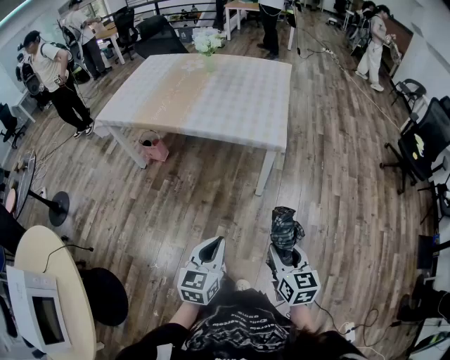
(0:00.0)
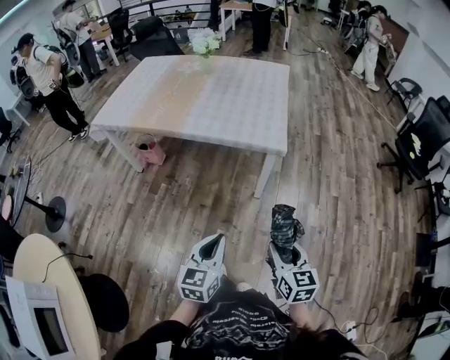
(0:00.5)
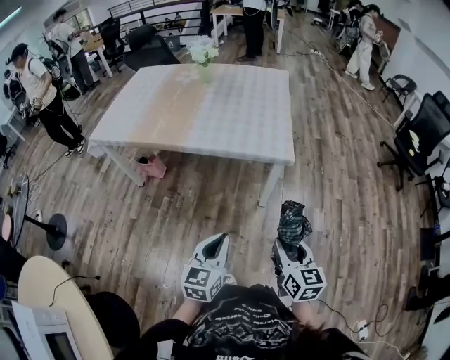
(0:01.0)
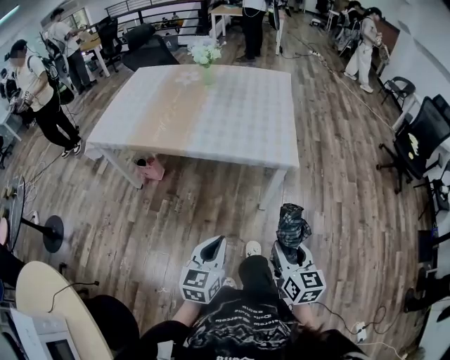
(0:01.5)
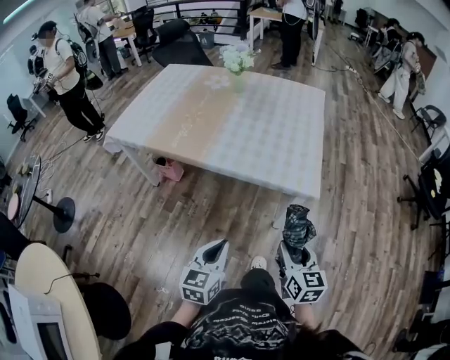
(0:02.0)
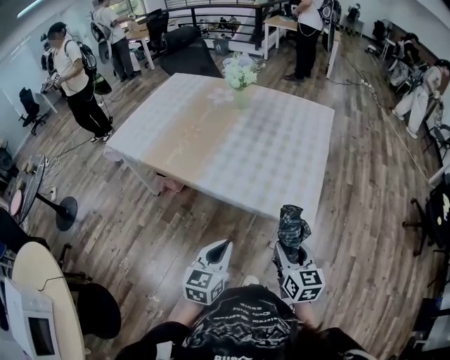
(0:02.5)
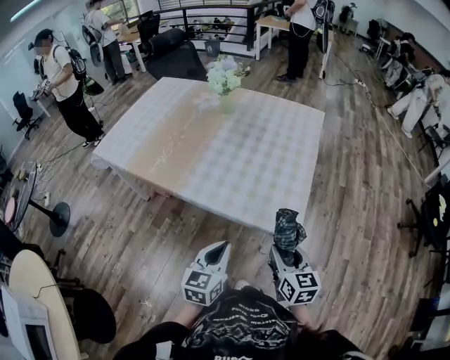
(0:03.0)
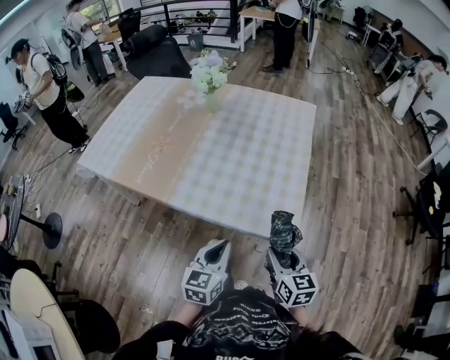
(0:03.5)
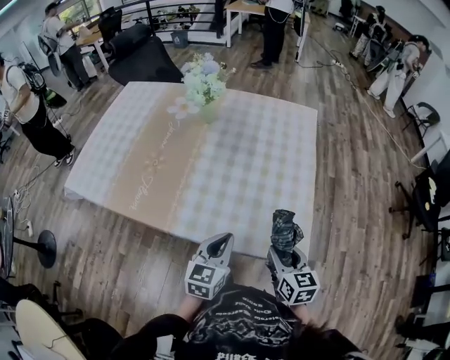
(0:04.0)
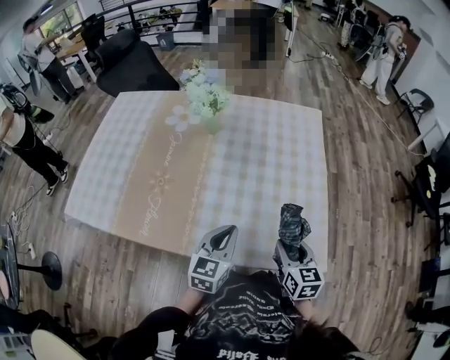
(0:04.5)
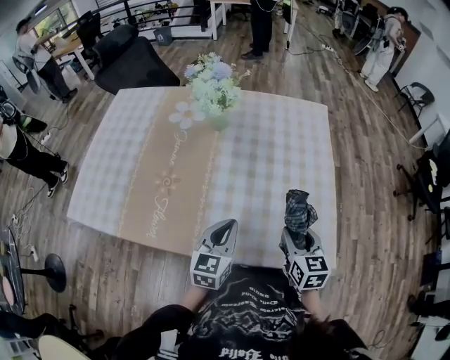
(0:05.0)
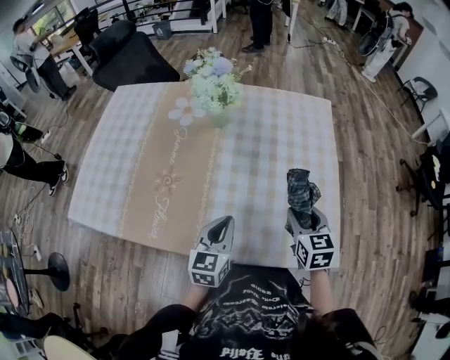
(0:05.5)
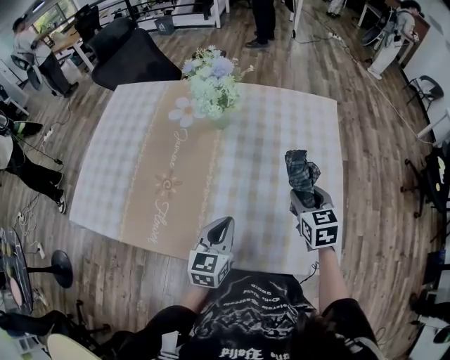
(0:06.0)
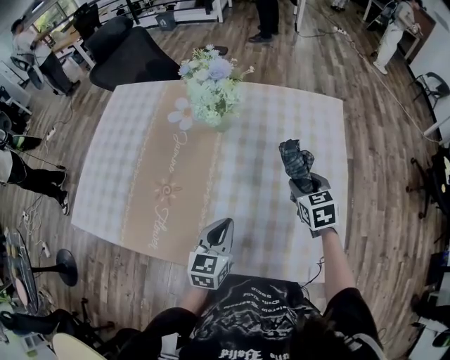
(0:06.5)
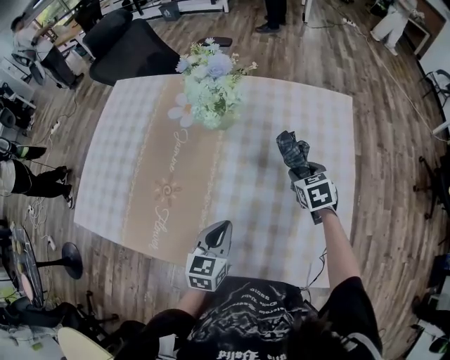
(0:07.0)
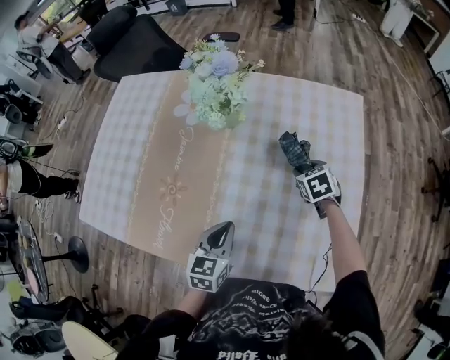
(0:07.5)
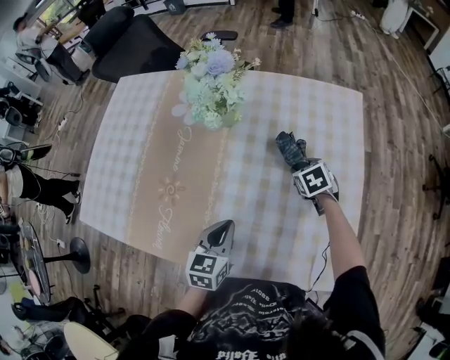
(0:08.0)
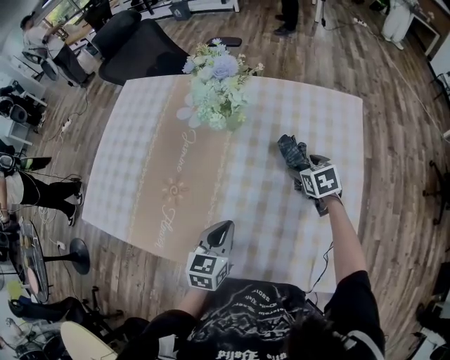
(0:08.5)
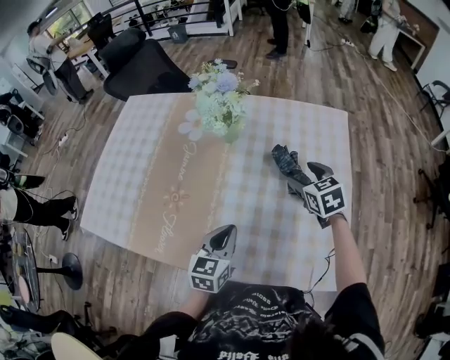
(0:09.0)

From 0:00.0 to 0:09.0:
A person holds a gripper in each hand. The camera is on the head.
From 0:00.0 to 0:02.0: Both grippers move forward and to the left, approximately 25 cm.
From 0:02.0 to 0:04.5: Both grippers are carried forward, some 50 cm.
From 0:04.5 to 0:07.0: The left gripper goes approximately 15 cm forward, to the left and downward. Meanwhile the right gripper moves forward, about 35 cm, and turns by about 30 degrees.
From 0:07.0 to 0:09.0: The right gripper shifts about 10 cm upward, and opens up.

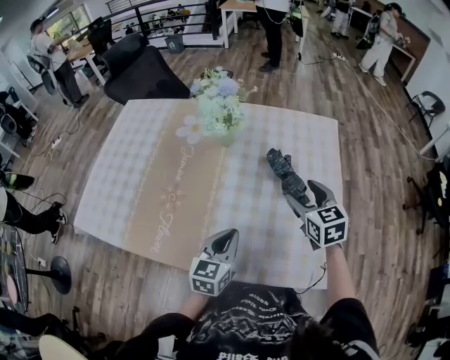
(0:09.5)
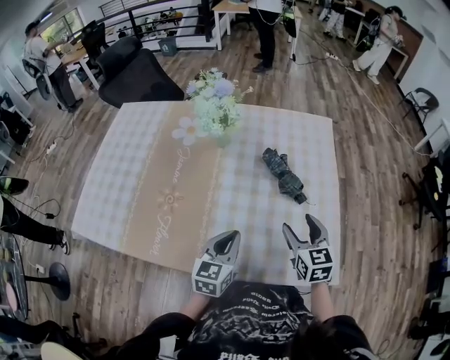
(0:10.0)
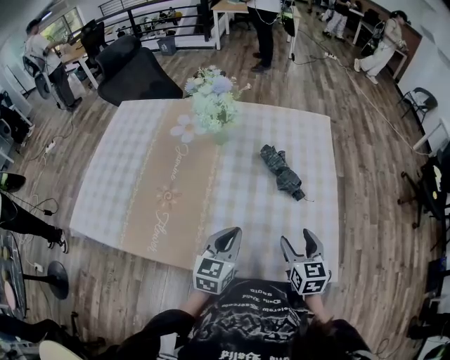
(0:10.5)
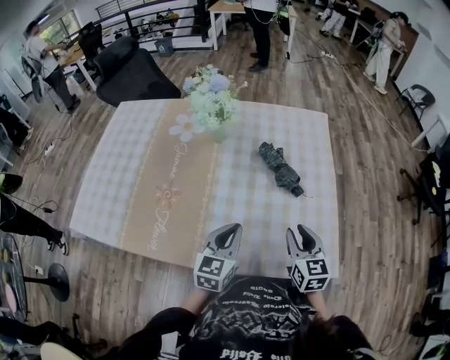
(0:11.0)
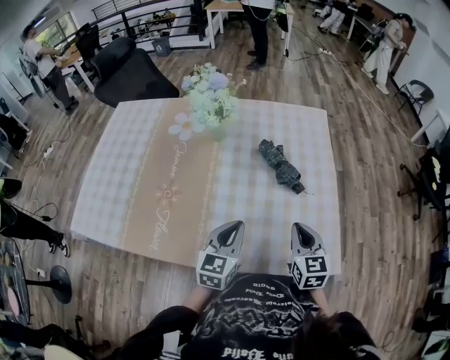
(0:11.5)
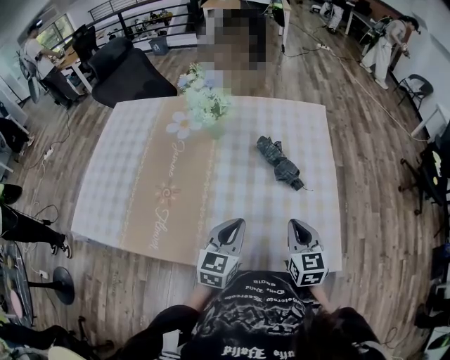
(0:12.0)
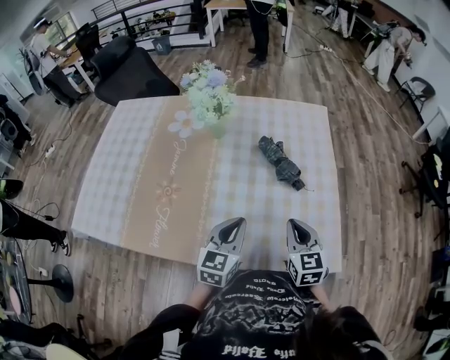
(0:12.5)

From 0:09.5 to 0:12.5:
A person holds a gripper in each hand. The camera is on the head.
From 0:09.5 to 0:11.0: The right gripper heads backward, covering about 15 cm, and closes its fingers.
From 0:11.0 to 0:12.5: The right gripper closes.

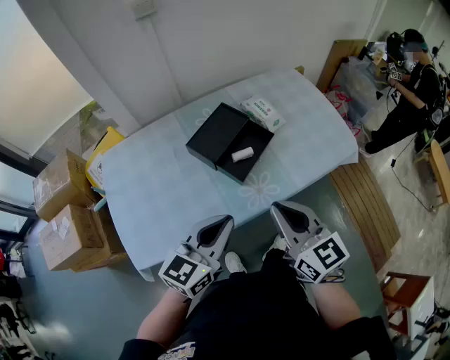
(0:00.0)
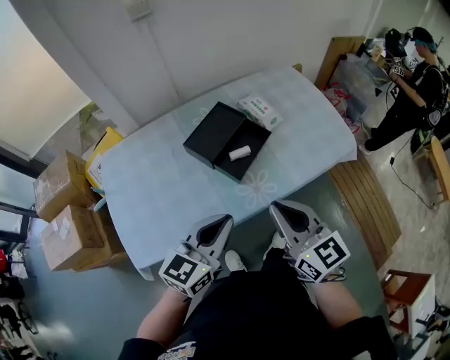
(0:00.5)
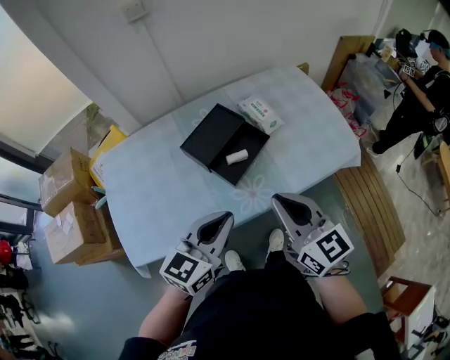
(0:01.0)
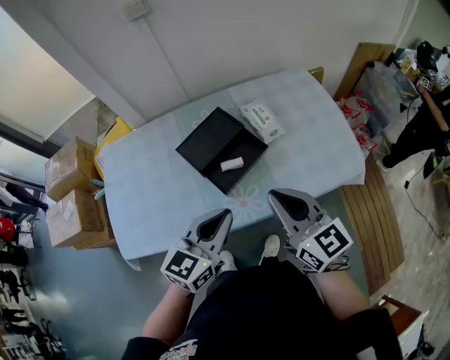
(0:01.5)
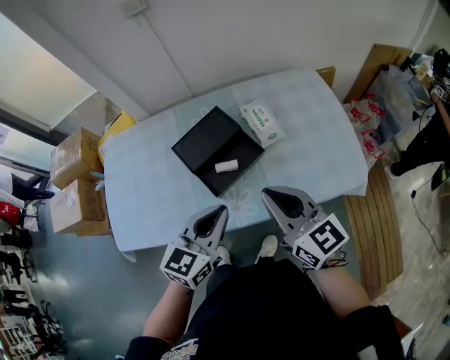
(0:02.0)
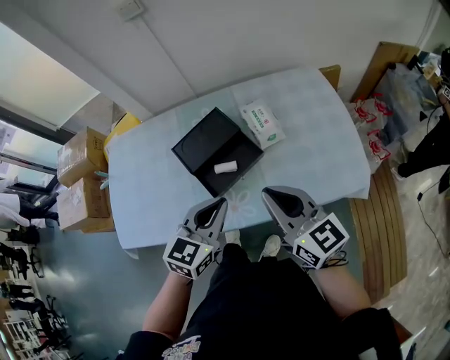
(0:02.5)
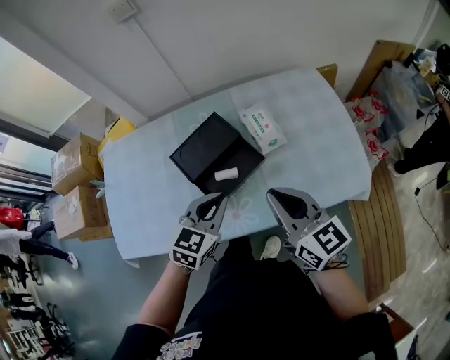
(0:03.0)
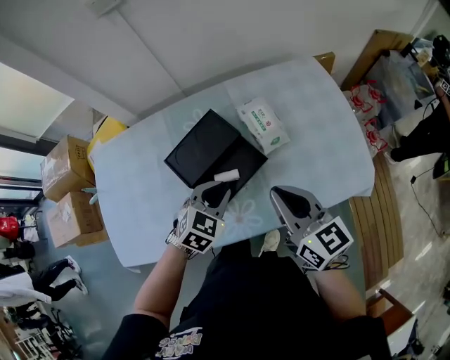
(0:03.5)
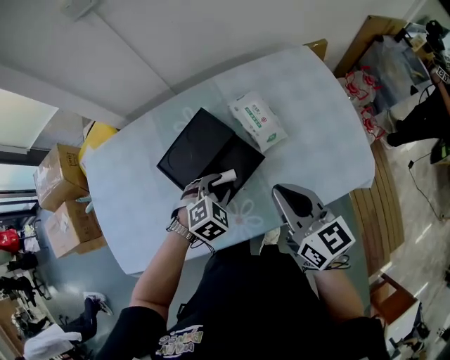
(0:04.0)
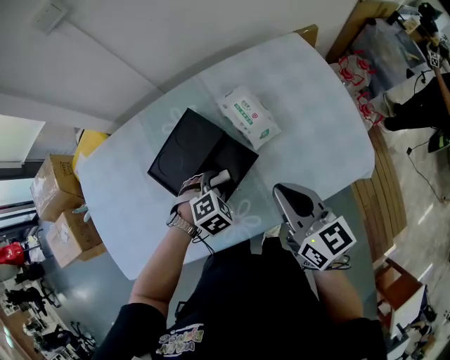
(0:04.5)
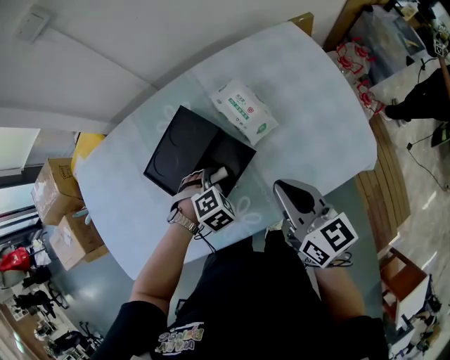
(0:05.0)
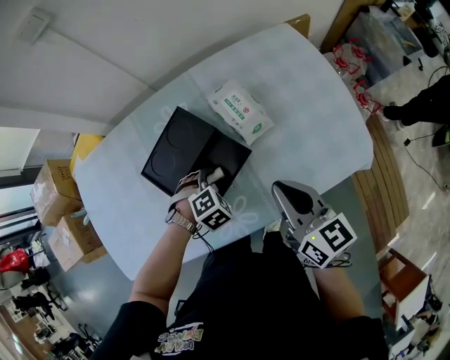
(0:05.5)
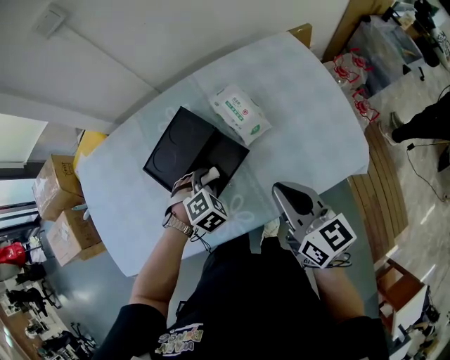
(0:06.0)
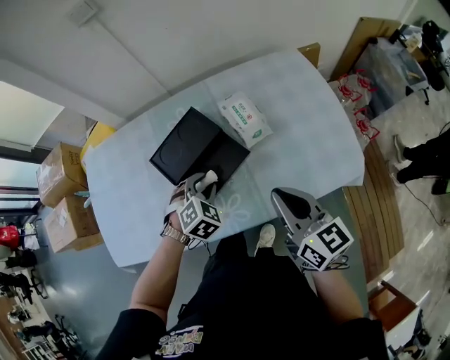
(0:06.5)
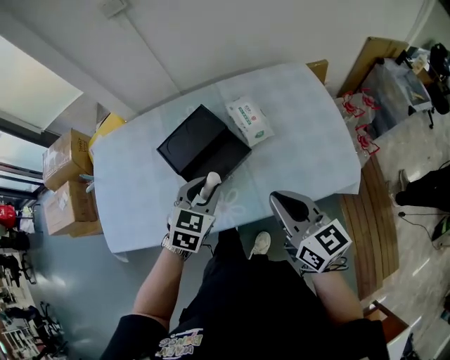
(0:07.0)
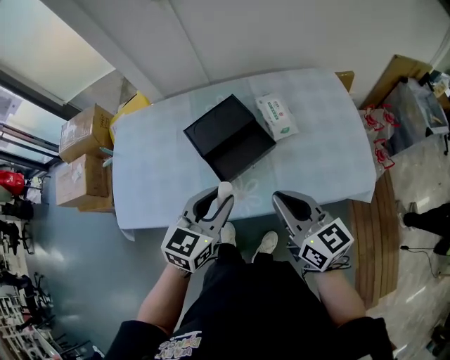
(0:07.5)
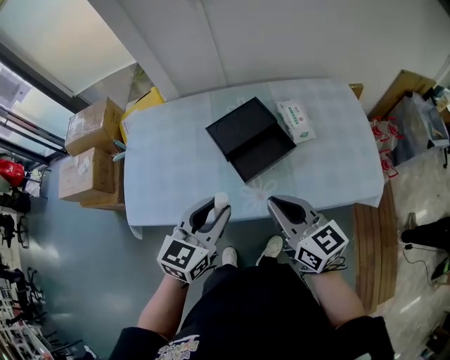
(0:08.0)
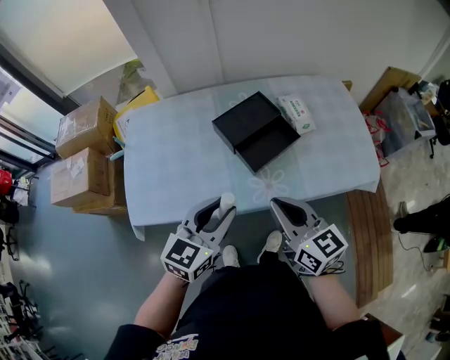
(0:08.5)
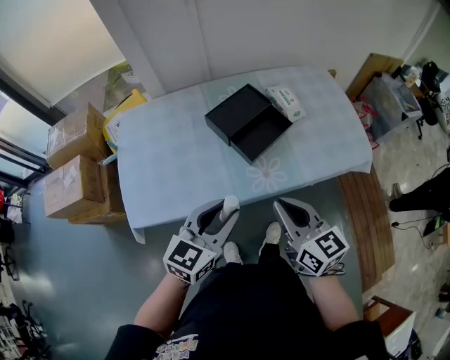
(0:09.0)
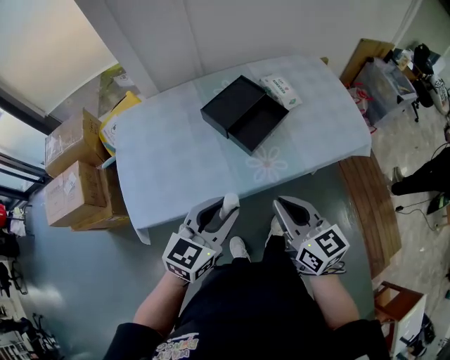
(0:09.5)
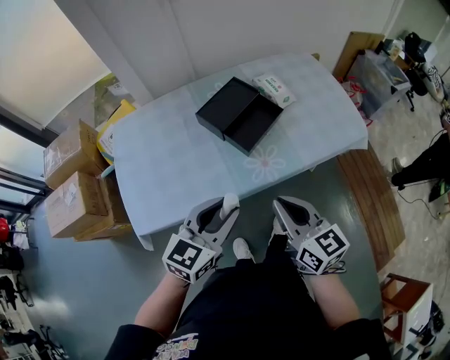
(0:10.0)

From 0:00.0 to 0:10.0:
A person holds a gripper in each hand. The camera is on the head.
From 0:00.0 to 0:02.0: The left gripper is displaced to the right and forward by approximately 15 cm, while the right gripper moves forward and to the right, some 20 cm, and turns by some 20 degrees.
From 0:02.0 to 0:04.0: The left gripper travels downward and forward by some 25 cm, tips its fingers downward by approximately 40 degrees, and opens up, while the right gripper heads forward and downward, covering roughly 10 cm.
From 0:06.0 to 0:08.0: The left gripper heads upward, backward and to the left, covering roughly 35 cm, and tilts its fingers approximately 50 degrees upward, while the right gripper heads to the left and backward, covering approximately 20 cm, and turns by approximately 30 degrees.
From 0:08.0 to 0:10.0: The grippers both shift backward and to the left by approximately 15 cm. The right gripper rotates some 20 degrees; the left gripper swivels some 20 degrees.

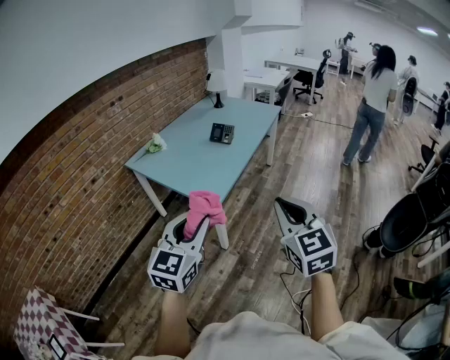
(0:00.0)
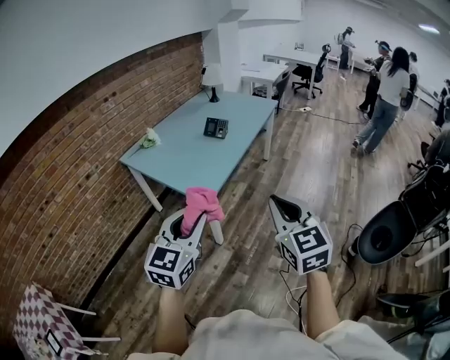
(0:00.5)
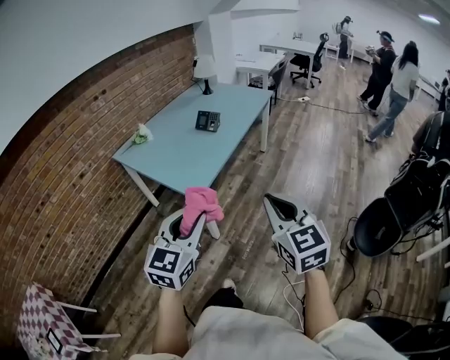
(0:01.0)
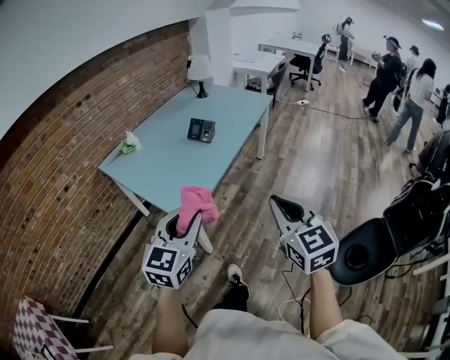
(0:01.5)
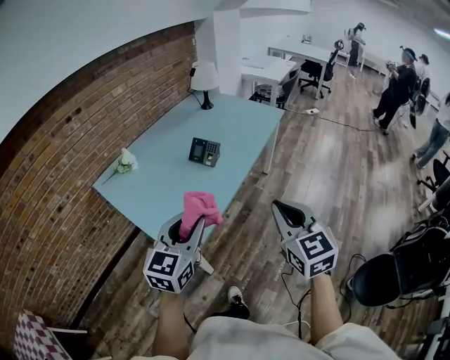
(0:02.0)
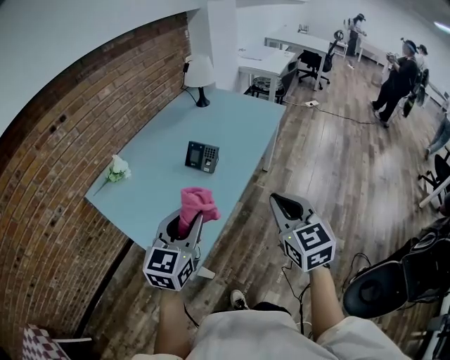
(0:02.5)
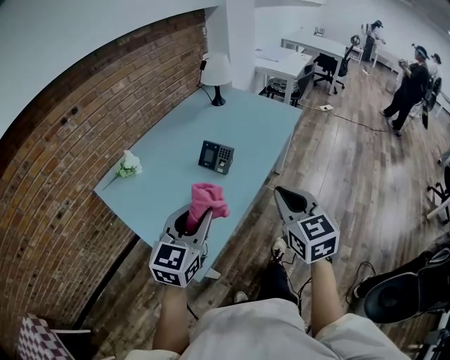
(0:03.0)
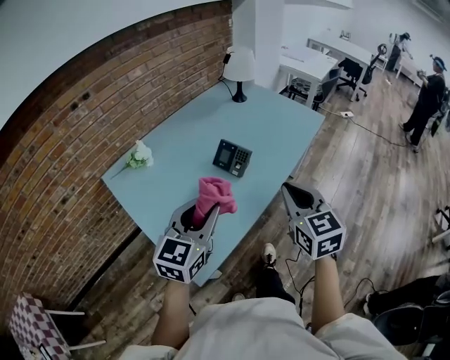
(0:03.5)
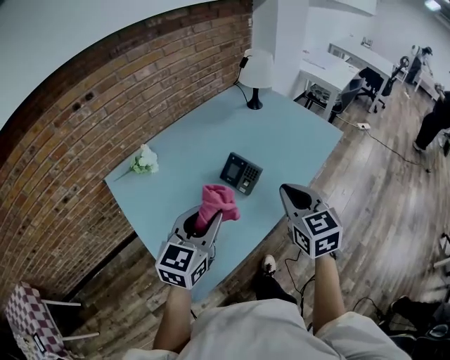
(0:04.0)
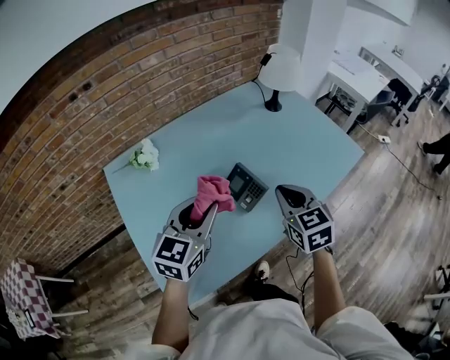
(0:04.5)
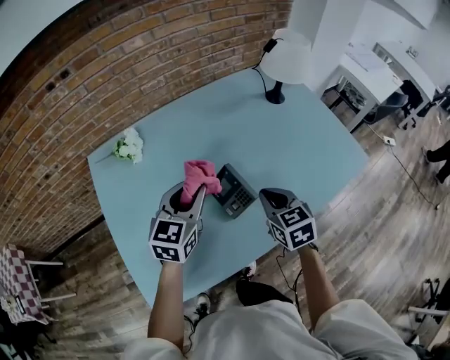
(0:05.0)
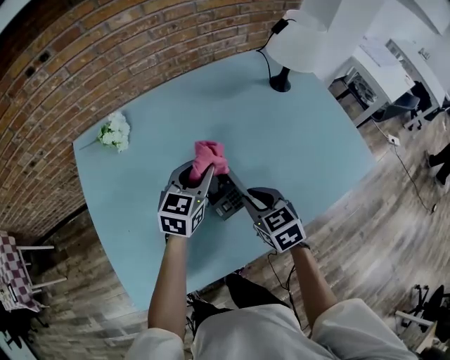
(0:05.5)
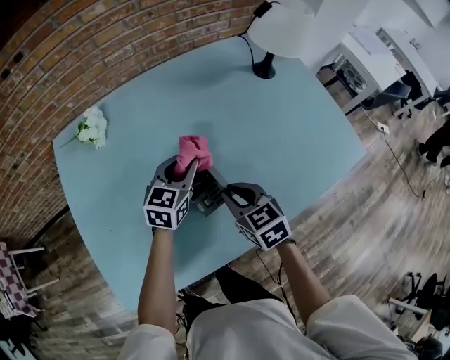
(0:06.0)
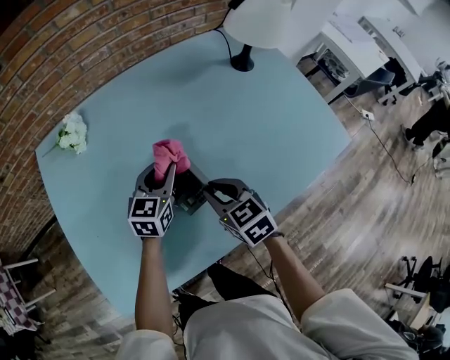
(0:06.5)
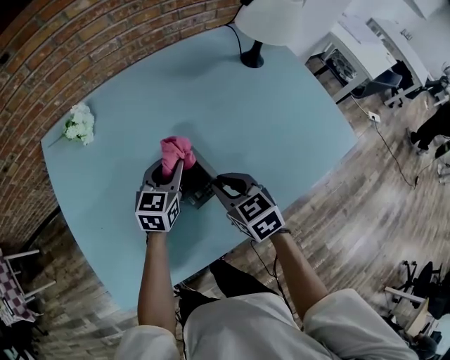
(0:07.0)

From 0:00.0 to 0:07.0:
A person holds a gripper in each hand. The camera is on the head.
From 0:00.0 to 0:02.0: Both grippers travel together forward, roughly 35 cm.
From 0:02.0 to 0:03.5: The grippers both shift forward by about 20 cm.
From 0:03.5 to 0:05.0: The left gripper moves about 30 cm, and swivels approximately 30 degrees; the right gripper shifts by about 35 cm, and swivels about 30 degrees.
From 0:05.0 to 0:07.0: The left gripper moves downward, to the right and forward, roughly 15 cm; the right gripper is displaced downward by approximately 10 cm.
